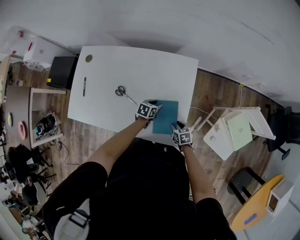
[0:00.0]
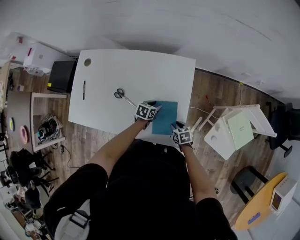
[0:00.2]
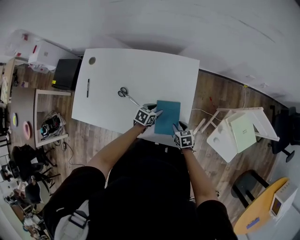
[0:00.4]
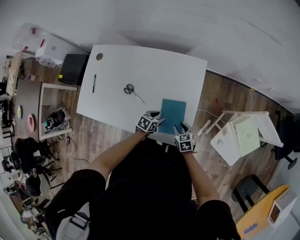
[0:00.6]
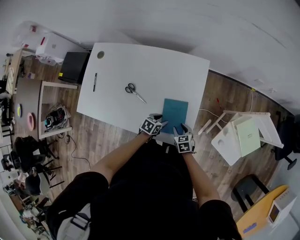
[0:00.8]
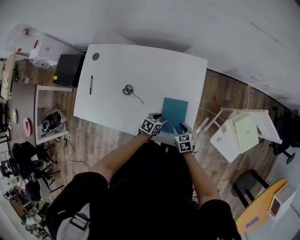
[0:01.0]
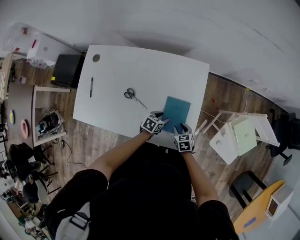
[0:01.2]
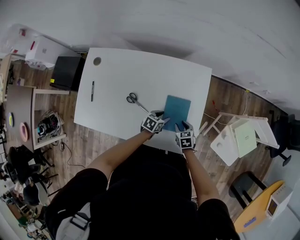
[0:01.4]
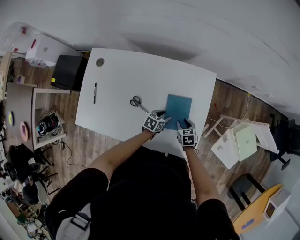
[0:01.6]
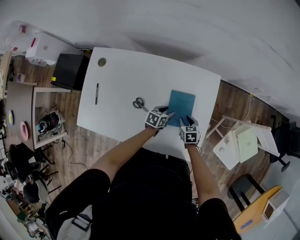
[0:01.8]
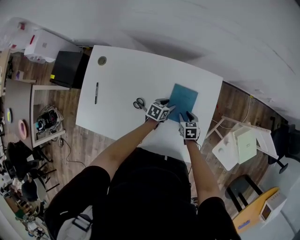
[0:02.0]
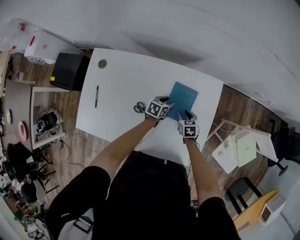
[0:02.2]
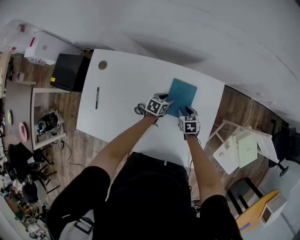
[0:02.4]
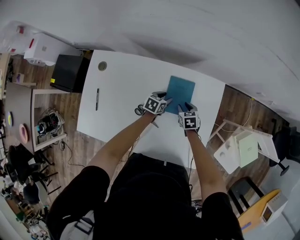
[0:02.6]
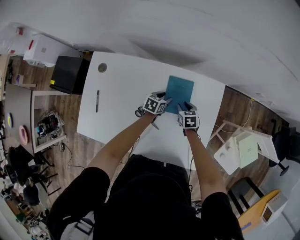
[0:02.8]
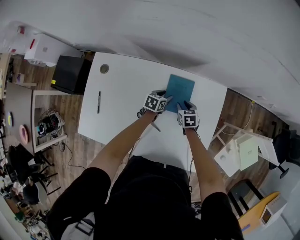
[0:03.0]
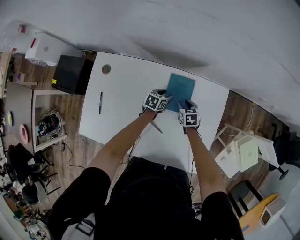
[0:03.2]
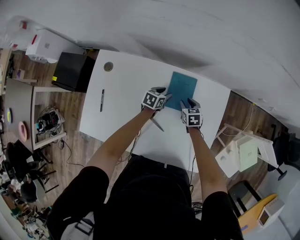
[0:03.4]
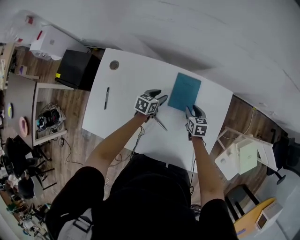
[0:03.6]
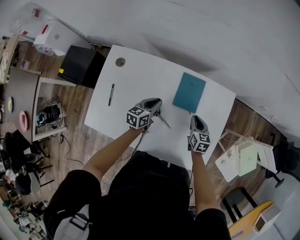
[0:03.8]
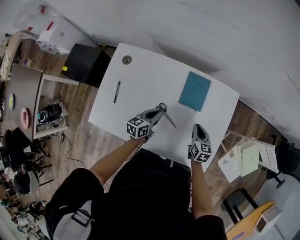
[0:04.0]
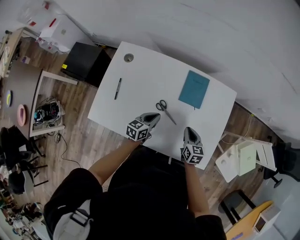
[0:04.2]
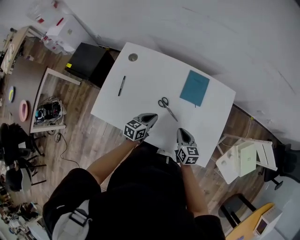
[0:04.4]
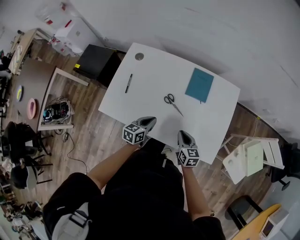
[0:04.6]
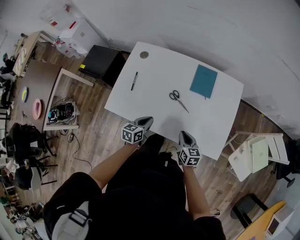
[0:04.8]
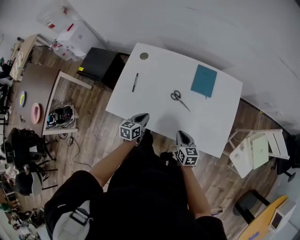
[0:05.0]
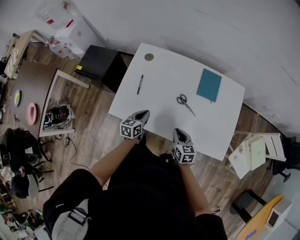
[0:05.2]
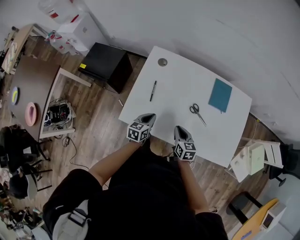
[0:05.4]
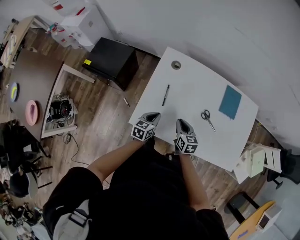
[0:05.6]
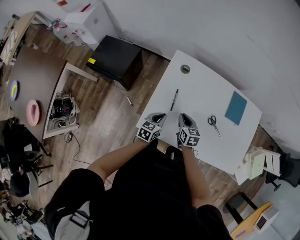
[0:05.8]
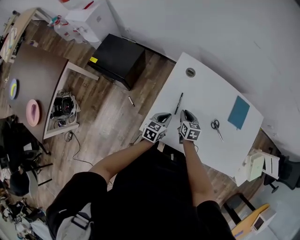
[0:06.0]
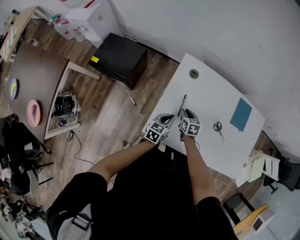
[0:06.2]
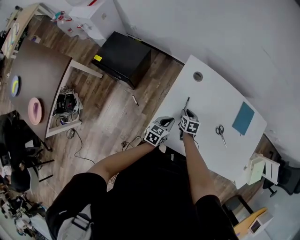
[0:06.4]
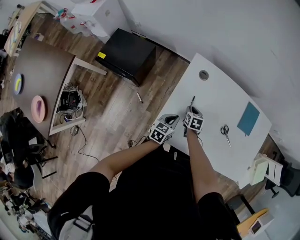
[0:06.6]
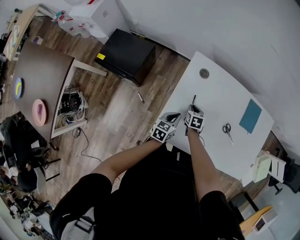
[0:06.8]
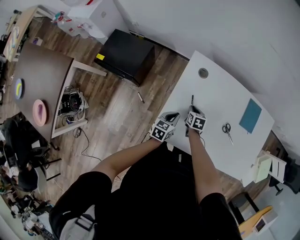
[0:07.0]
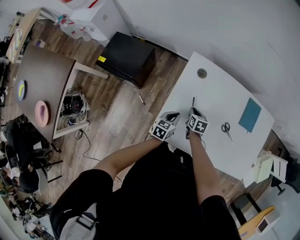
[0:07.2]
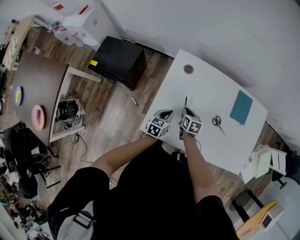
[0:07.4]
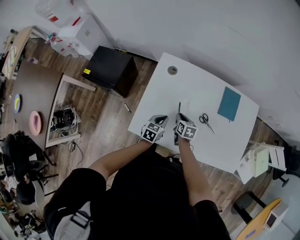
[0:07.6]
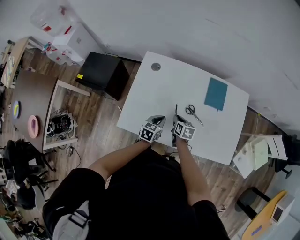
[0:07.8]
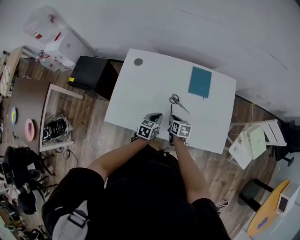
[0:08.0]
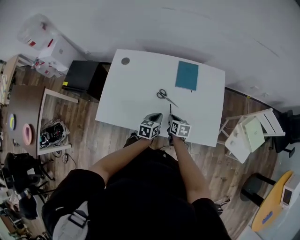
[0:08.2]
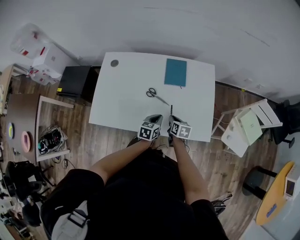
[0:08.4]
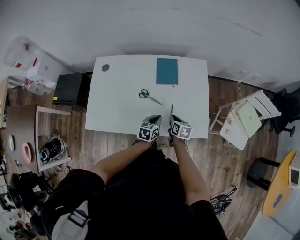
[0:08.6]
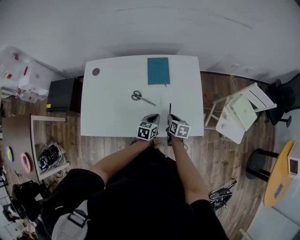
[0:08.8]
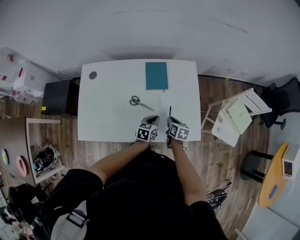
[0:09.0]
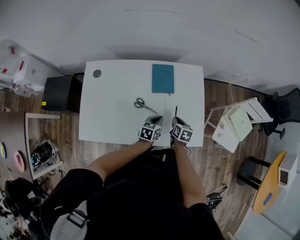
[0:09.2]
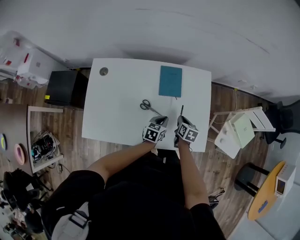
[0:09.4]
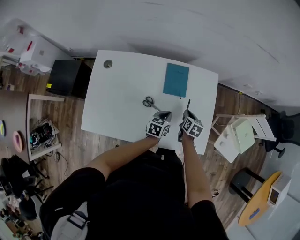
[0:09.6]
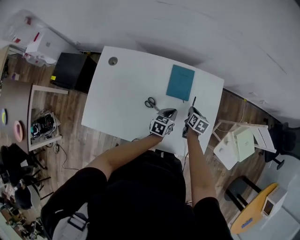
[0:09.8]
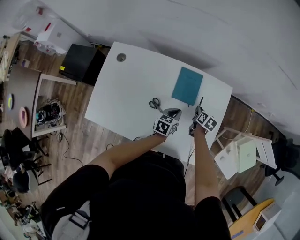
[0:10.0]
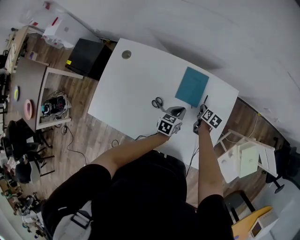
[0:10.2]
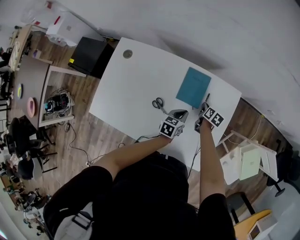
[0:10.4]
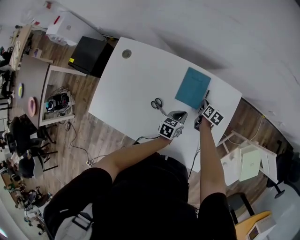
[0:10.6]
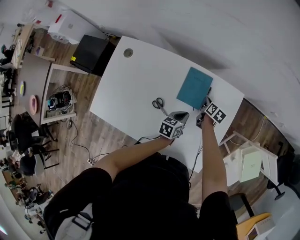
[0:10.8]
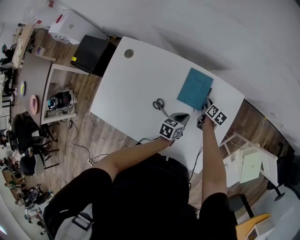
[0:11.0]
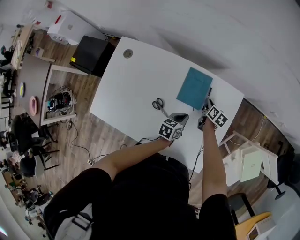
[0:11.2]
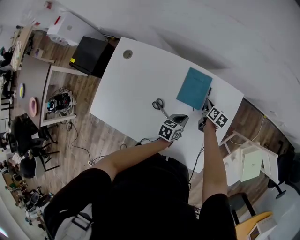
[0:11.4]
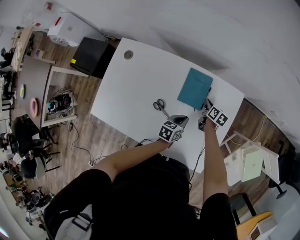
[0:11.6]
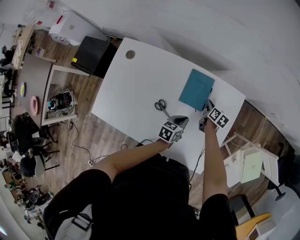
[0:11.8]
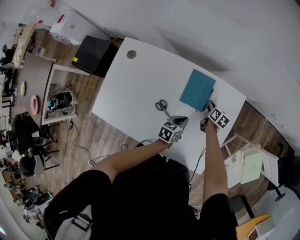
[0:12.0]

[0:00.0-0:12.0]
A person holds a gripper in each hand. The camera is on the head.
0:00.0 to 0:01.6: The left gripper moves about 10 cm backward and comes back; the right gripper shifts roughly 10 cm to the left and forward.
0:01.6 to 0:03.0: The two grippers go roughly 20 cm forward and to the left.
0:03.0 to 0:04.4: The right gripper travels backward and upward by about 25 cm, swivels about 20 degrees, and closes. Meanwhile the left gripper travels backward, to the left and upward by about 30 cm, and closes.
0:04.4 to 0:06.0: Both grippers travel together to the left, roughly 35 cm.
0:06.0 to 0:07.6: The two grippers go roughly 10 cm to the right.
0:07.6 to 0:09.0: Both grippers travel together to the right, some 40 cm. The right gripper swivels roughly 20 degrees.
0:09.0 to 0:10.4: The left gripper moves forward, roughly 15 cm. The right gripper travels forward by about 25 cm.
0:10.4 to 0:12.0: The grippers stay close to where they were, moving slightly.

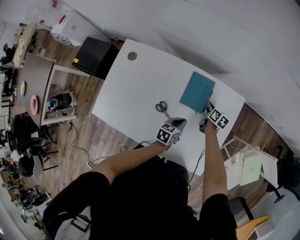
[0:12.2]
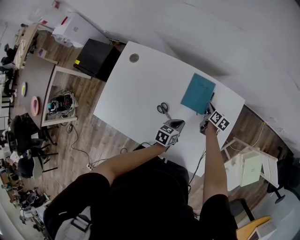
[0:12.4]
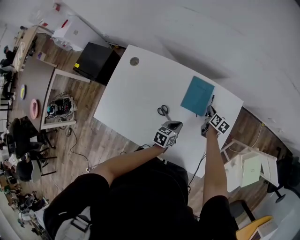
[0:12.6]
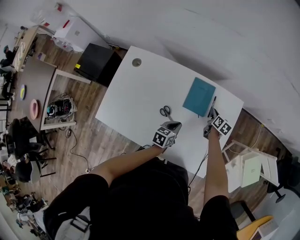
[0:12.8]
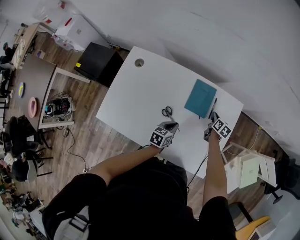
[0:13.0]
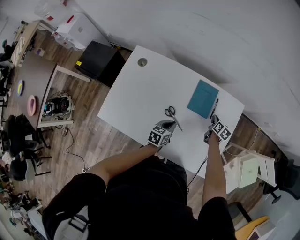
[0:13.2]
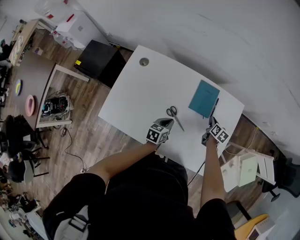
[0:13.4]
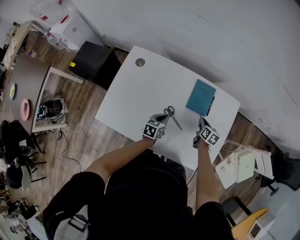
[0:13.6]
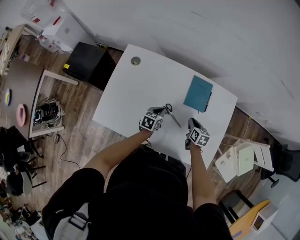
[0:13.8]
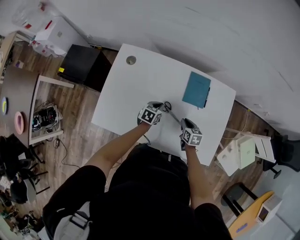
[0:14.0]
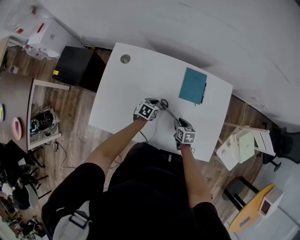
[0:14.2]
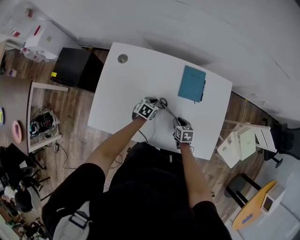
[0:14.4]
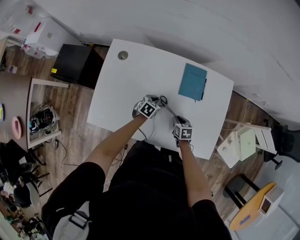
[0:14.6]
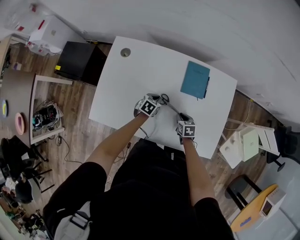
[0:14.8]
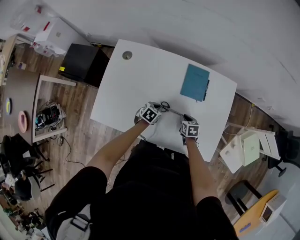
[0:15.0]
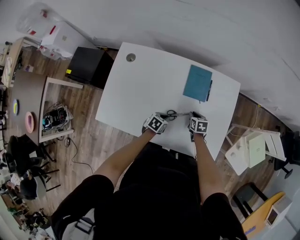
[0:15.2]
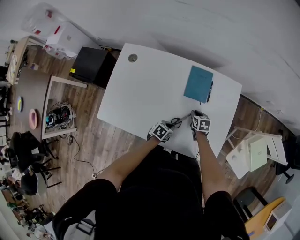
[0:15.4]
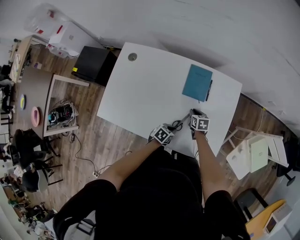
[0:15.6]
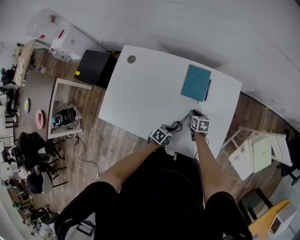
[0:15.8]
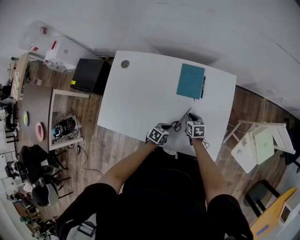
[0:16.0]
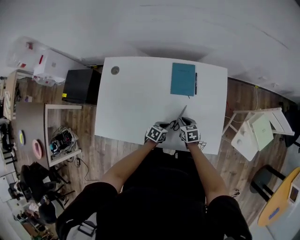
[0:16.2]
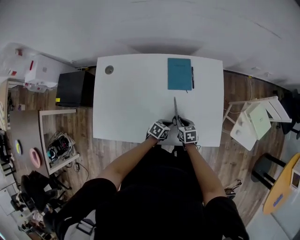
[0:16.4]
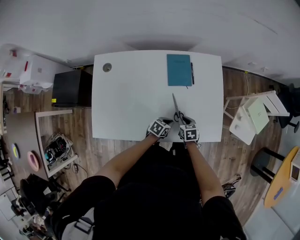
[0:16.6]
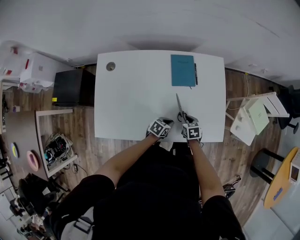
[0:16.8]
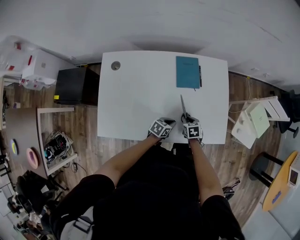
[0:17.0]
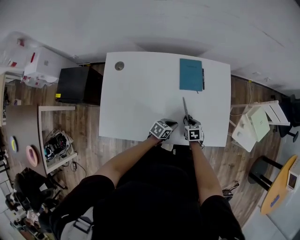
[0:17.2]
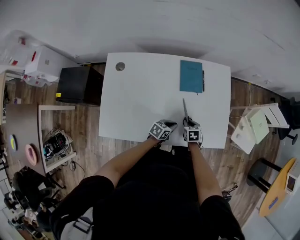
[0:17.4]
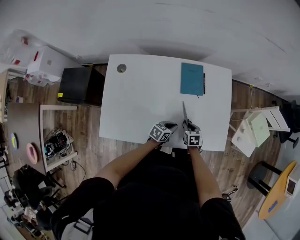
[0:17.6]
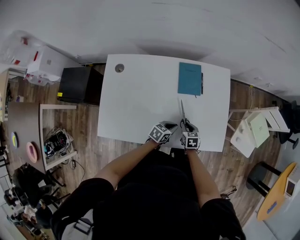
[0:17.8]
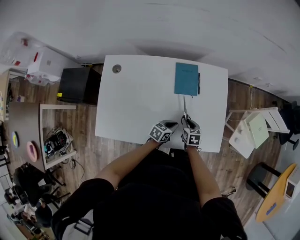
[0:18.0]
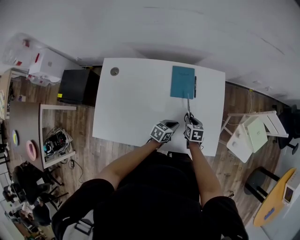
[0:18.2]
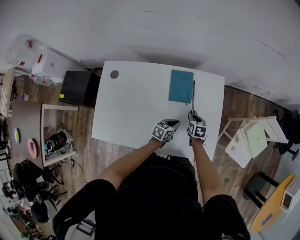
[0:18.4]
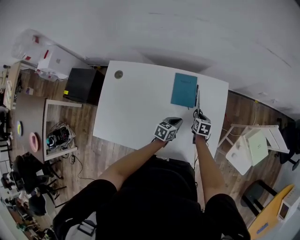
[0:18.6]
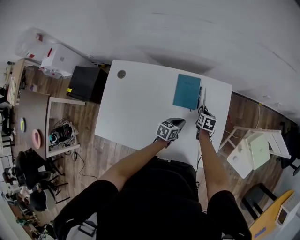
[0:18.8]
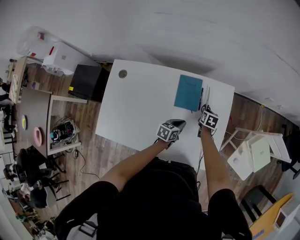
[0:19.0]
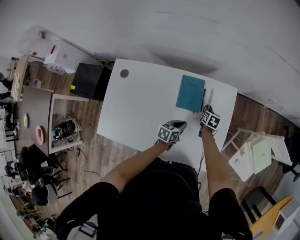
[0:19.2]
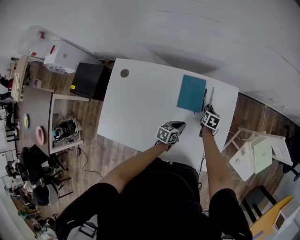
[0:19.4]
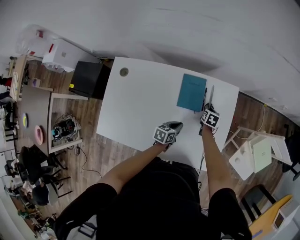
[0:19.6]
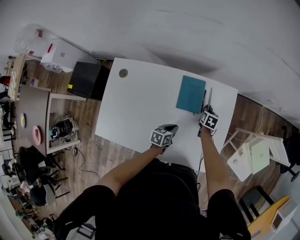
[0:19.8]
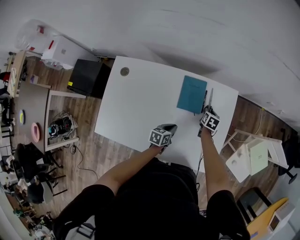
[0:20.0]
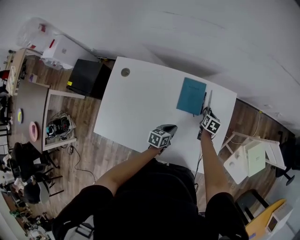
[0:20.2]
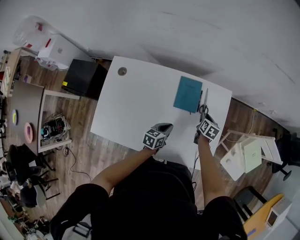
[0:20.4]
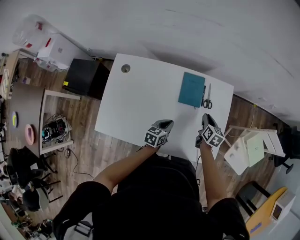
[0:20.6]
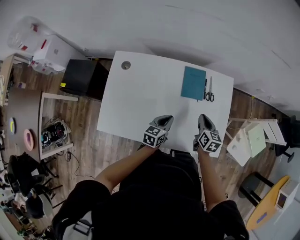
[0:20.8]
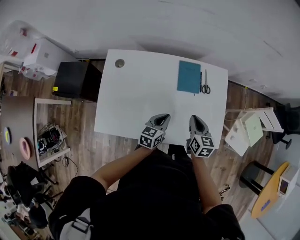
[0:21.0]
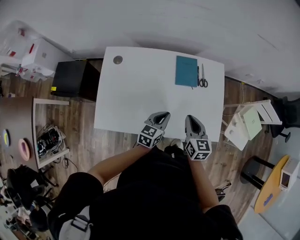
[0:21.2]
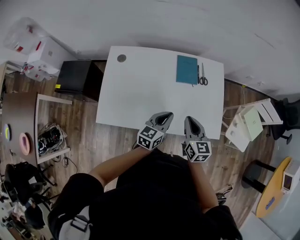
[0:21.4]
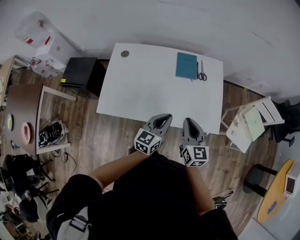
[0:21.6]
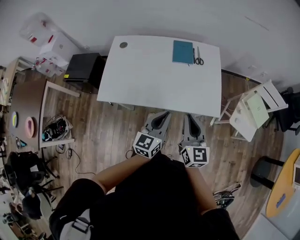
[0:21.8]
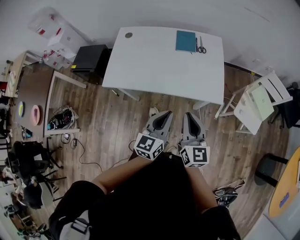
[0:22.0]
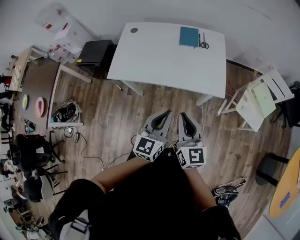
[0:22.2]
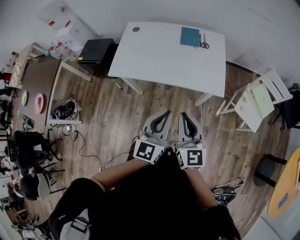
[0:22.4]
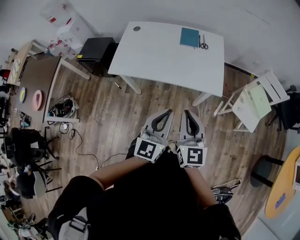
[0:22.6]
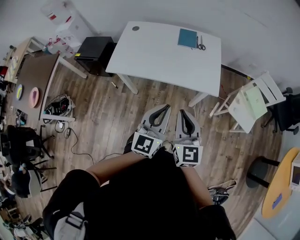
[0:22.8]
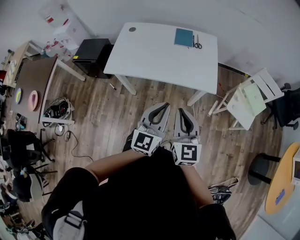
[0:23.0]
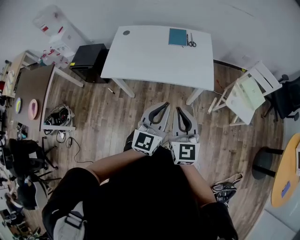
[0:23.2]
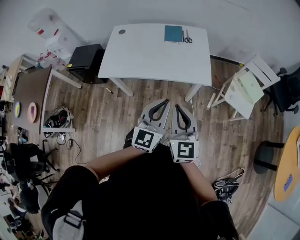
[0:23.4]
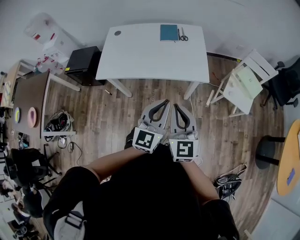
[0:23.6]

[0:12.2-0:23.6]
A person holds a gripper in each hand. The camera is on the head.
0:12.2 to 0:13.6: The left gripper shifts roughly 15 cm to the left; the right gripper goes roughly 10 cm backward.
0:13.6 to 0:15.0: The right gripper heads backward, downward and to the left, covering approximately 15 cm, and swivels approximately 20 degrees, while the left gripper is displaced downward by about 10 cm, and changes its angle by some 30 degrees.
0:15.0 to 0:16.4: The right gripper heads backward, covering approximately 5 cm. The left gripper shifts about 15 cm to the right and backward.
0:16.4 to 0:17.8: The left gripper changes place by some 5 cm.
0:17.8 to 0:19.4: The left gripper heads forward, covering roughly 15 cm, and rotates approximately 20 degrees; the right gripper goes approximately 25 cm forward.
0:19.4 to 0:20.8: The left gripper shifts roughly 15 cm upward, to the left and backward; the right gripper goes some 25 cm upward and backward, and swivels some 20 degrees.
0:20.8 to 0:22.2: The pair of grippers is taken backward, approximately 40 cm. Both grippers travel together upward, approximately 20 cm. The left gripper changes its angle by approximately 30 degrees. The right gripper points its fingers roughly 30 degrees further upward.
0:22.2 to 0:23.6: The grippers both shift backward by about 5 cm.
